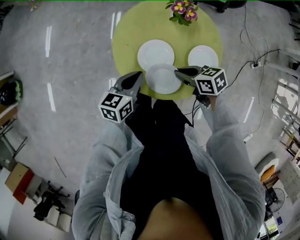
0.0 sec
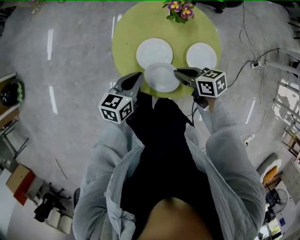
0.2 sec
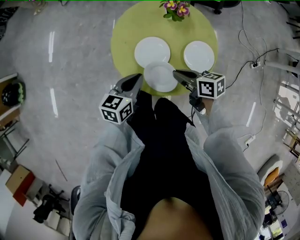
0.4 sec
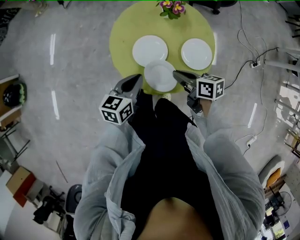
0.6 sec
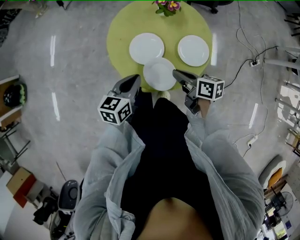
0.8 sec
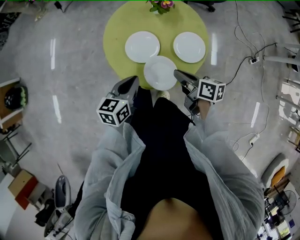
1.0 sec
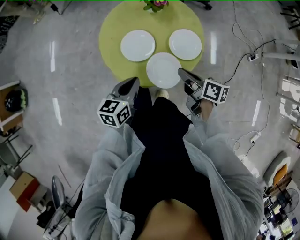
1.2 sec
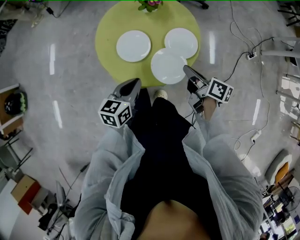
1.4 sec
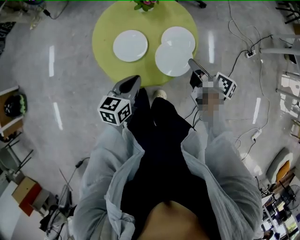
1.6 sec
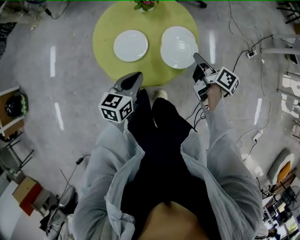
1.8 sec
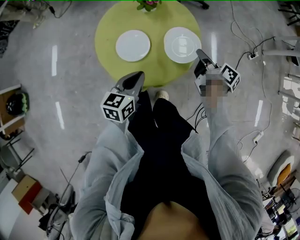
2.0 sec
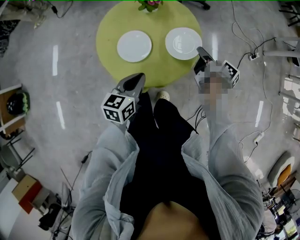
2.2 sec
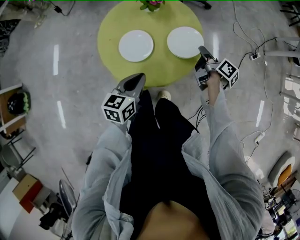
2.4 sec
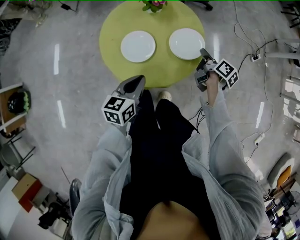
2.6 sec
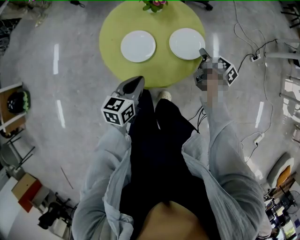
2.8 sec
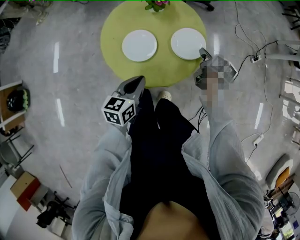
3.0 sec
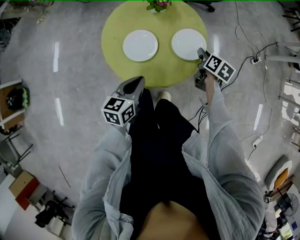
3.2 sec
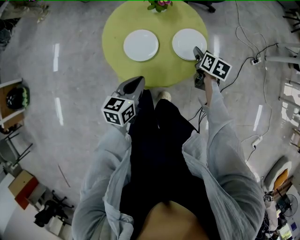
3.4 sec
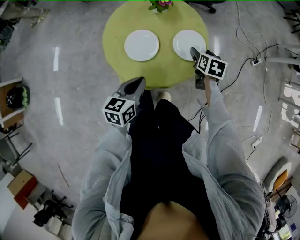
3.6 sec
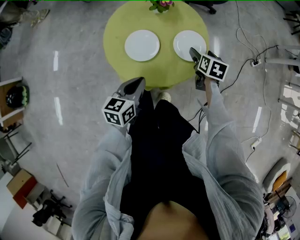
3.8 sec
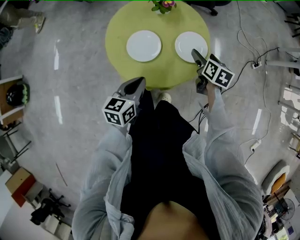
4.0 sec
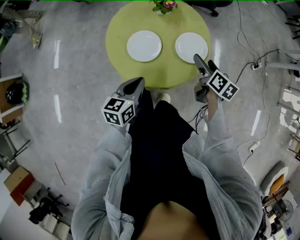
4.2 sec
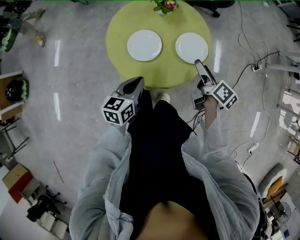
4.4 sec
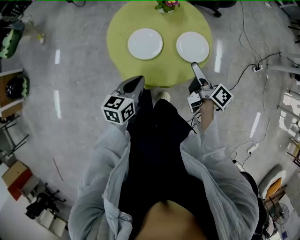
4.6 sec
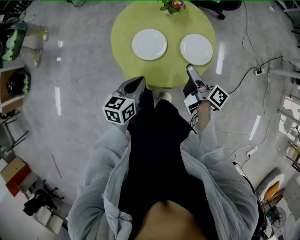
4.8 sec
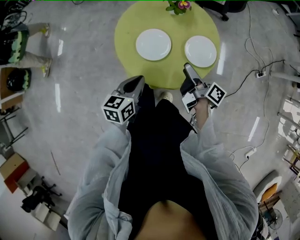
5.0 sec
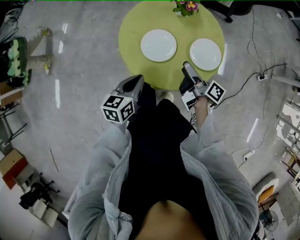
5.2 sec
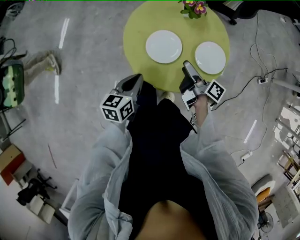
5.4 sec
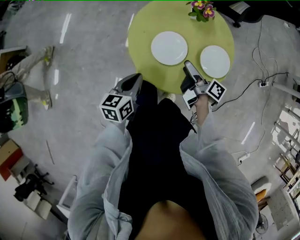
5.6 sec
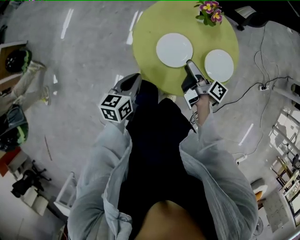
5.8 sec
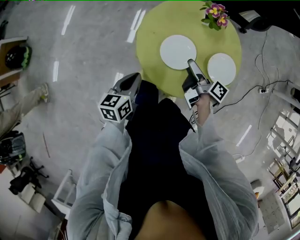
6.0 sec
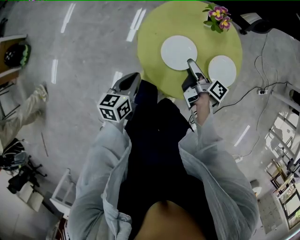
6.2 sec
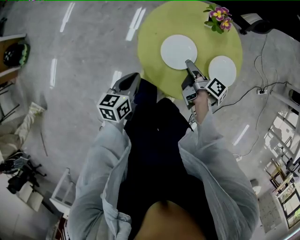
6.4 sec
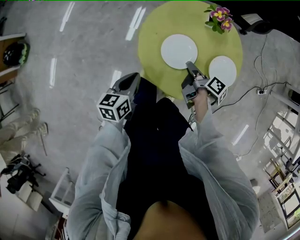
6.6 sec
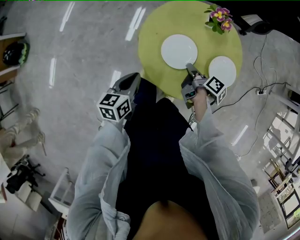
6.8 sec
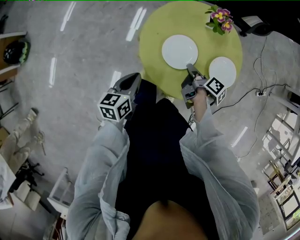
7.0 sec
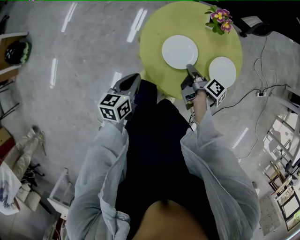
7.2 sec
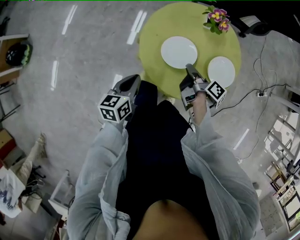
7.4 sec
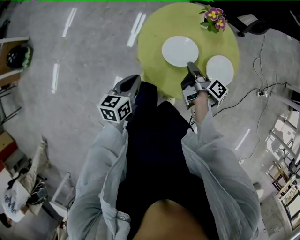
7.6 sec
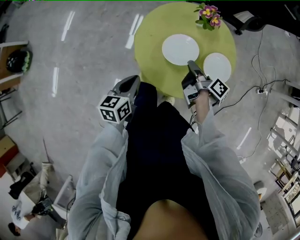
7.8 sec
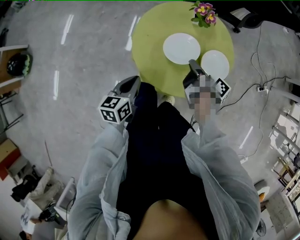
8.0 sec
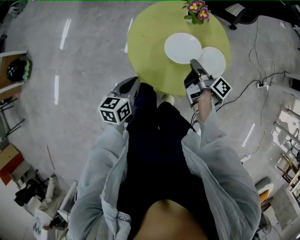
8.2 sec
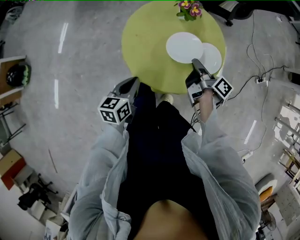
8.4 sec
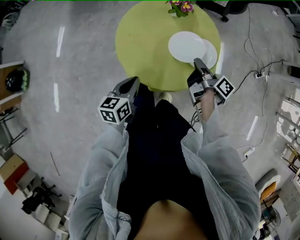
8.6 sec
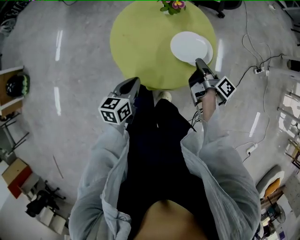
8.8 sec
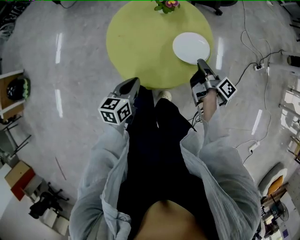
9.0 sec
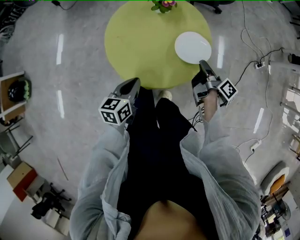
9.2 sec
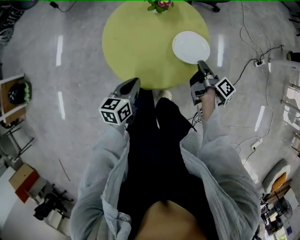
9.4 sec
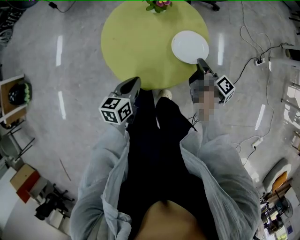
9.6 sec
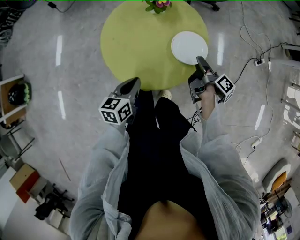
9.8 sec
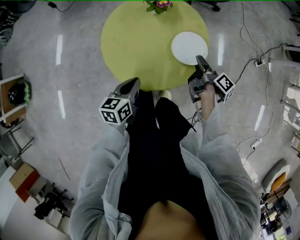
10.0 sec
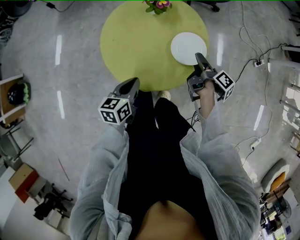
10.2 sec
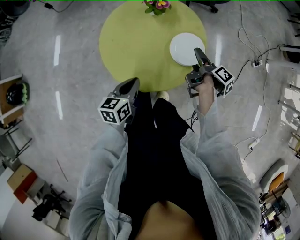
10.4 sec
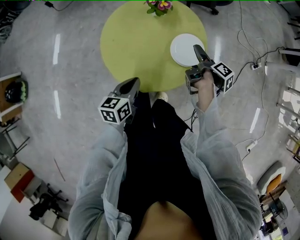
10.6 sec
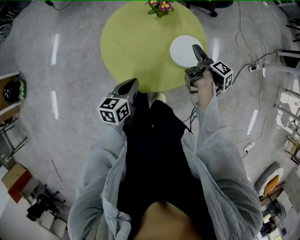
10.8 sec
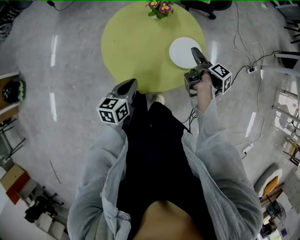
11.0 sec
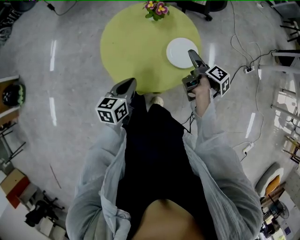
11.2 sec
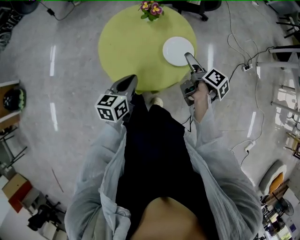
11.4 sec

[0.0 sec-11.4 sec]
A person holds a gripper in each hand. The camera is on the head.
0.0 sec to 1.4 sec: The right gripper travels to the right and backward by roughly 15 cm, and changes its angle by roughly 50 degrees, while the left gripper travels backward and to the right by roughly 10 cm.
1.4 sec to 2.8 sec: The right gripper heads forward, to the right and downward, covering roughly 15 cm, and turns by some 30 degrees.
2.8 sec to 4.2 sec: The right gripper changes place by about 5 cm, swivels about 20 degrees, and opens.
4.2 sec to 5.6 sec: The right gripper travels to the left by roughly 15 cm, and rotates approximately 50 degrees. Meanwhile the left gripper shifts roughly 10 cm to the left.
5.6 sec to 7.2 sec: The right gripper closes its fingers.
7.2 sec to 8.6 sec: The right gripper travels to the right and upward by about 15 cm. The left gripper travels to the right by approximately 10 cm.
8.6 sec to 10.0 sec: The left gripper heads to the right, covering roughly 5 cm, while the right gripper shifts roughly 10 cm to the right and downward, and opens its fingers.
10.0 sec to 11.4 sec: The left gripper shifts by approximately 5 cm; the right gripper is displaced upward by roughly 5 cm, and opens.

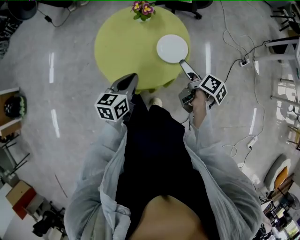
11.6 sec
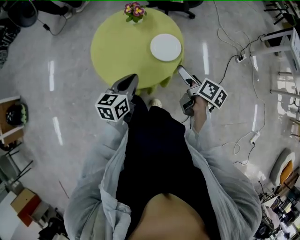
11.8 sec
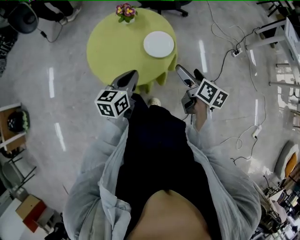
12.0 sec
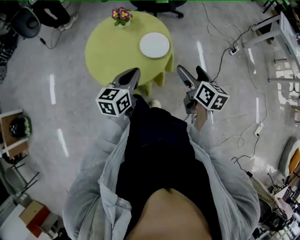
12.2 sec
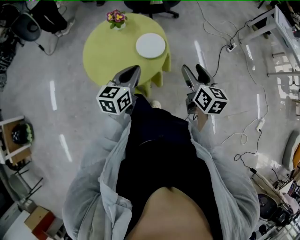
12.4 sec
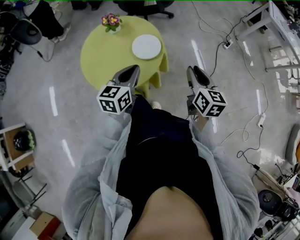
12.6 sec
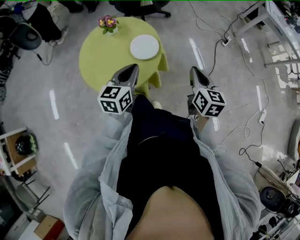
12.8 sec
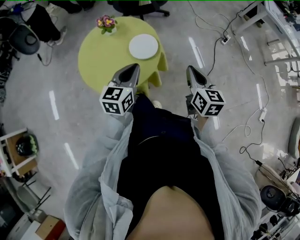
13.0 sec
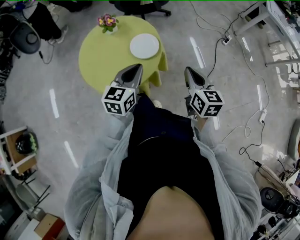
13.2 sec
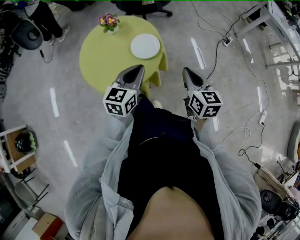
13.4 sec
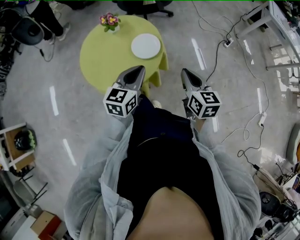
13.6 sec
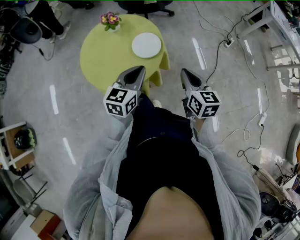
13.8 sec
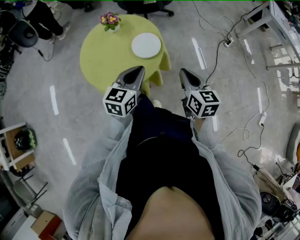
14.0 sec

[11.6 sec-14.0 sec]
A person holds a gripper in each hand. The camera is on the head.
11.6 sec to 12.8 sec: The right gripper heads to the right, upward and backward, covering about 15 cm, twists approximately 40 degrees counterclockwise, seen from behind, and closes its fingers. Meanwhile the left gripper heads to the right and upward, covering some 10 cm.
12.8 sec to 14.0 sec: The right gripper ends up some 5 cm from where it was.

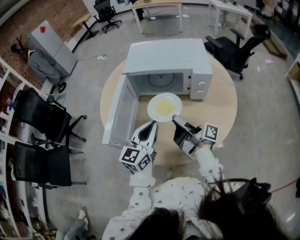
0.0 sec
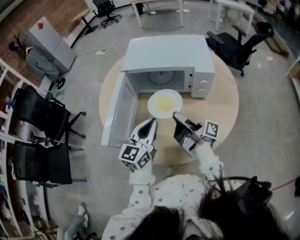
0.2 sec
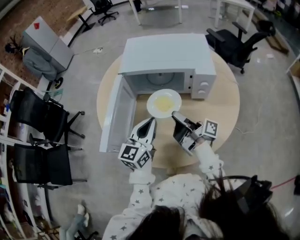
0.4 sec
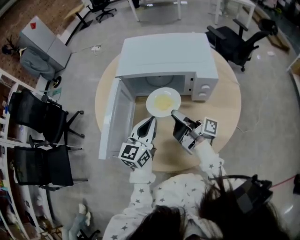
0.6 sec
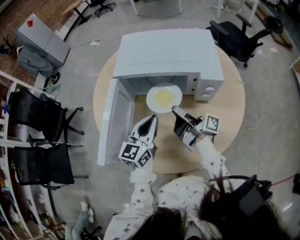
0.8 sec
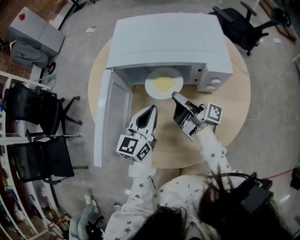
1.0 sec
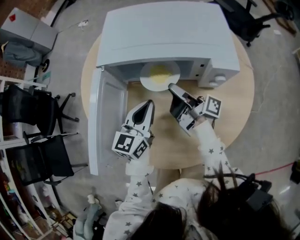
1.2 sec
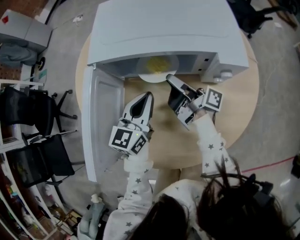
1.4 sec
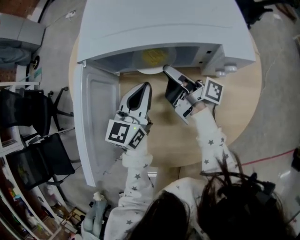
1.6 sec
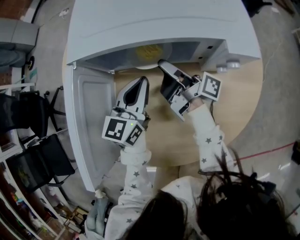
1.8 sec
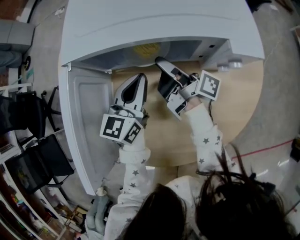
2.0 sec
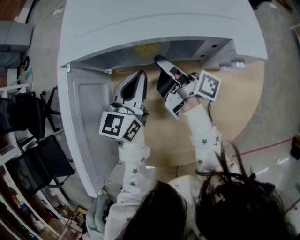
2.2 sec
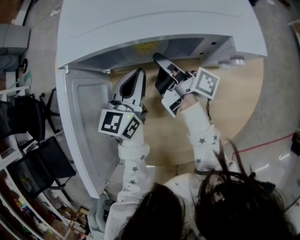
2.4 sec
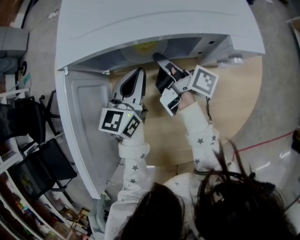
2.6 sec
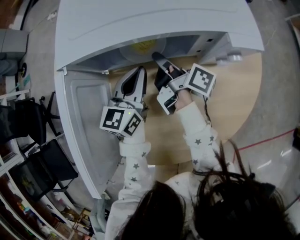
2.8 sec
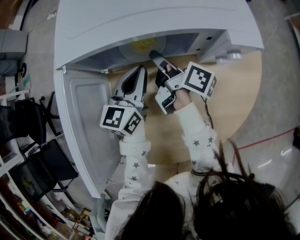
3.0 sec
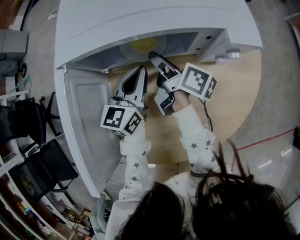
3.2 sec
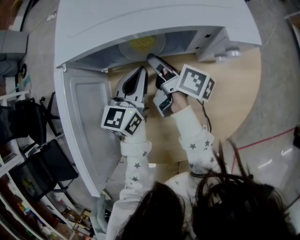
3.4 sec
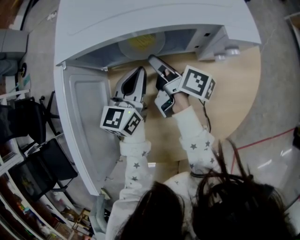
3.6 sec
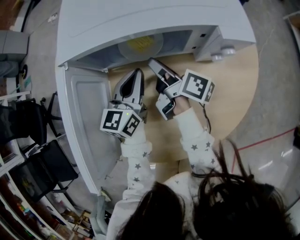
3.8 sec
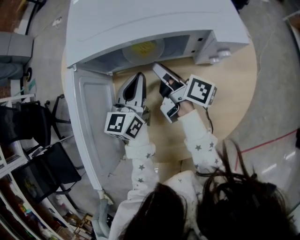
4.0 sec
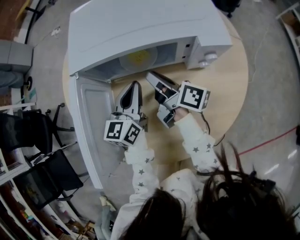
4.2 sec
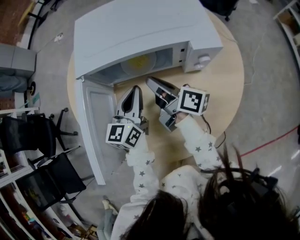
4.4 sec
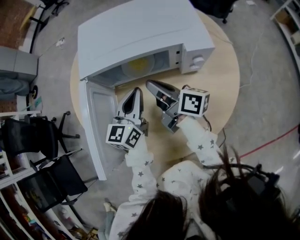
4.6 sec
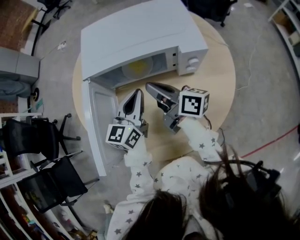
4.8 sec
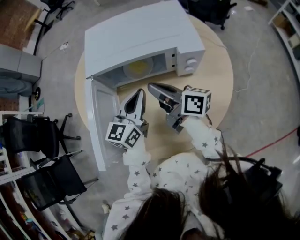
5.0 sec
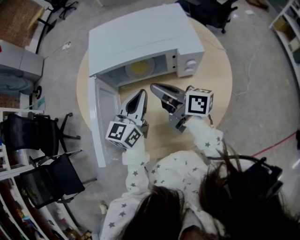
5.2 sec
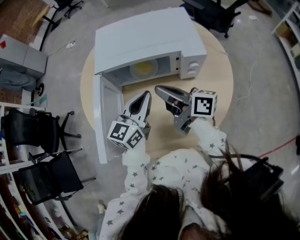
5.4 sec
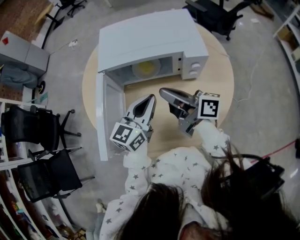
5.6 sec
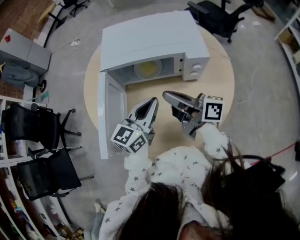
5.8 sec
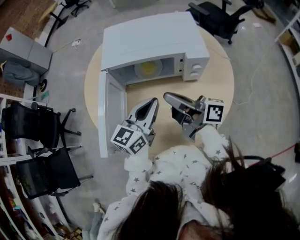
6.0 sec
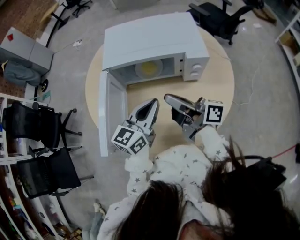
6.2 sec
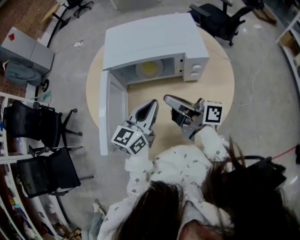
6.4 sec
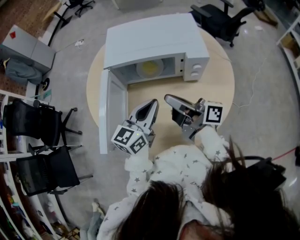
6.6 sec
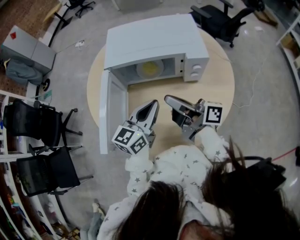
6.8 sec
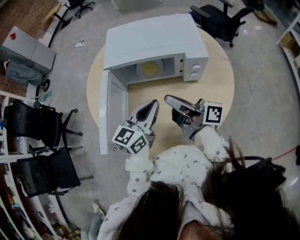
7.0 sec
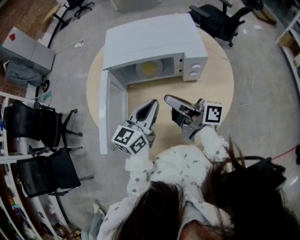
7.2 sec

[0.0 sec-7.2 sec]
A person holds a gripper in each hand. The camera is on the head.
0.0 sec to 1.4 sec: The left gripper shifts by approximately 20 cm.
1.4 sec to 2.8 sec: The left gripper changes place by about 5 cm.
2.8 sec to 4.4 sec: The left gripper ends up about 5 cm from where it was.
4.4 sec to 5.8 sec: The left gripper ends up about 15 cm from where it was.

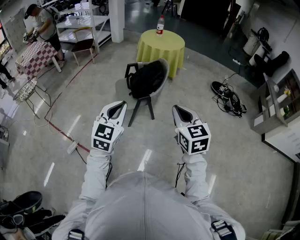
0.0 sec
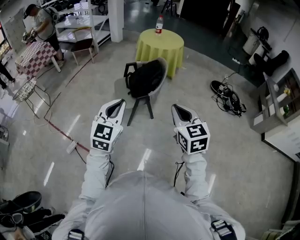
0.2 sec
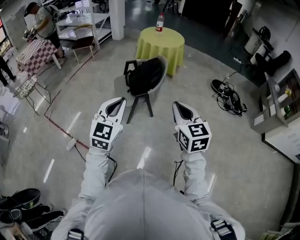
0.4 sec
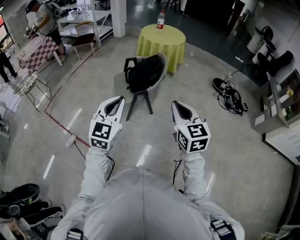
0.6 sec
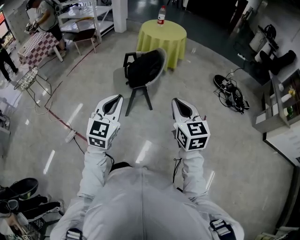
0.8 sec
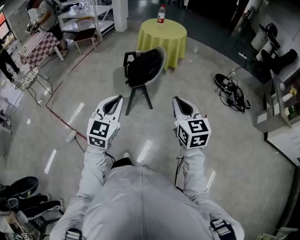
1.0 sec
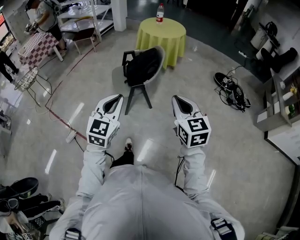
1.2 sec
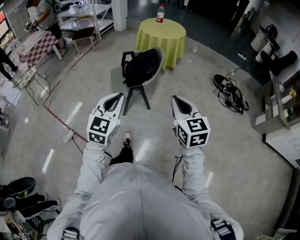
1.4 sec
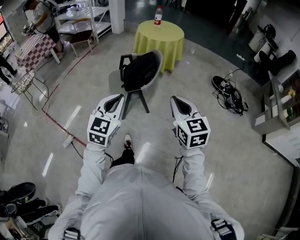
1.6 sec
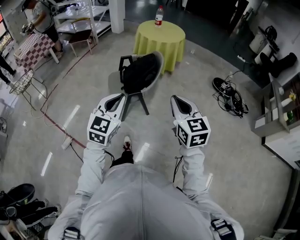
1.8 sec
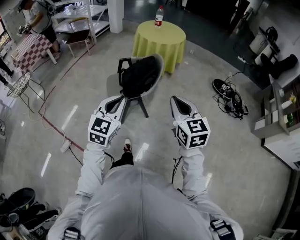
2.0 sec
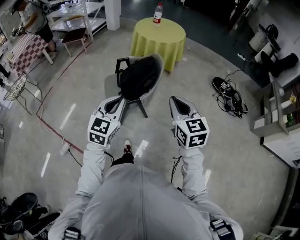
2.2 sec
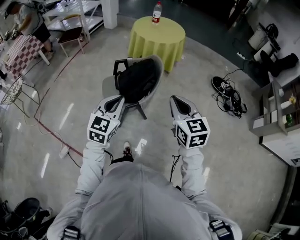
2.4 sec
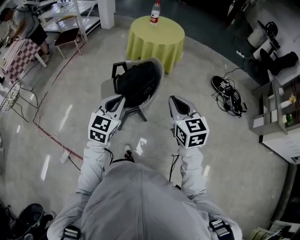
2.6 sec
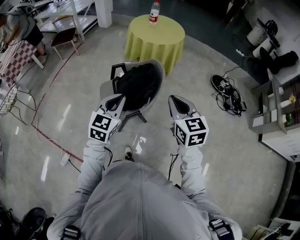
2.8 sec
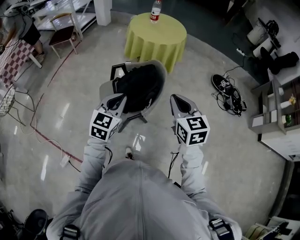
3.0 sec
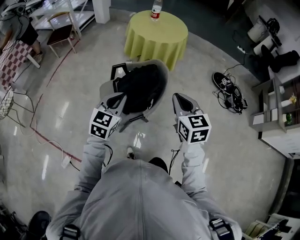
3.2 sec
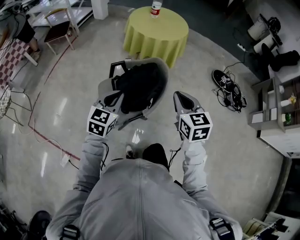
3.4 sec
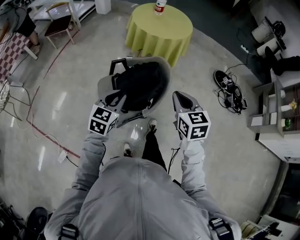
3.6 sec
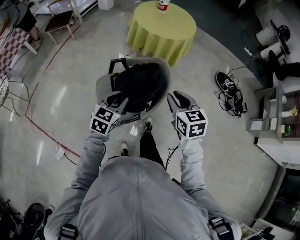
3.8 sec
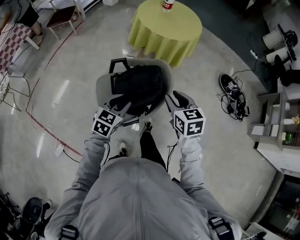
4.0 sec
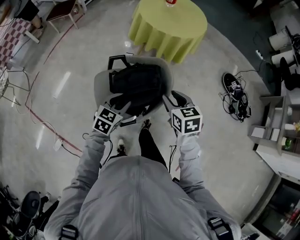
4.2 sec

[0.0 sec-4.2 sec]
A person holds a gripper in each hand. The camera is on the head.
0.0 sec to 1.4 sec: Both grippers move to the right, approximately 10 cm.
1.4 sec to 2.8 sec: Both grippers move forward, some 30 cm.
2.8 sec to 4.2 sec: The left gripper goes approximately 25 cm downward and forward, swivels roughly 20 degrees, and opens its fingers, while the right gripper goes some 25 cm forward and downward, turns by roughly 20 degrees, and opens.
